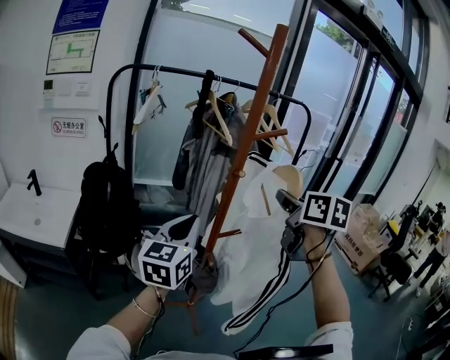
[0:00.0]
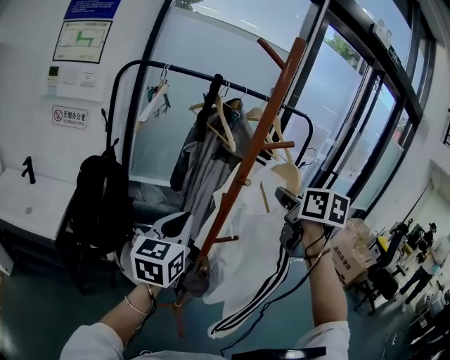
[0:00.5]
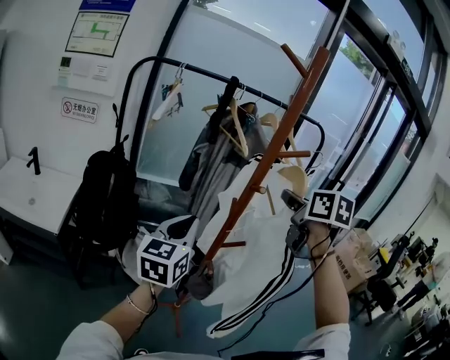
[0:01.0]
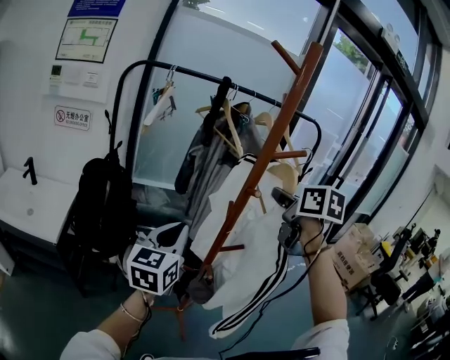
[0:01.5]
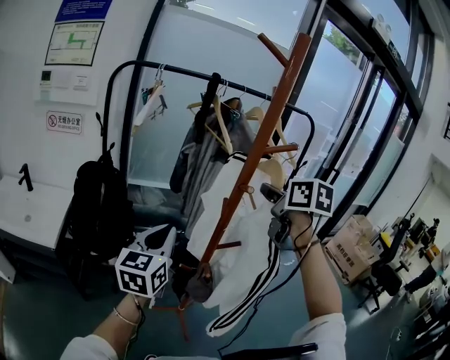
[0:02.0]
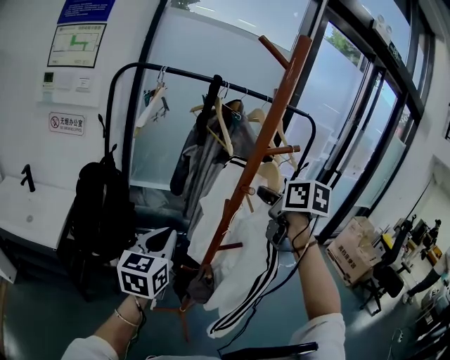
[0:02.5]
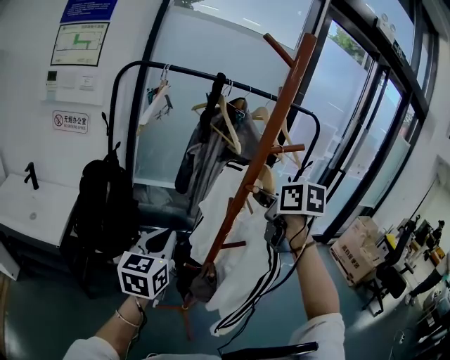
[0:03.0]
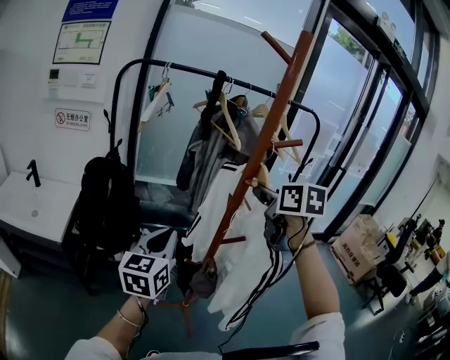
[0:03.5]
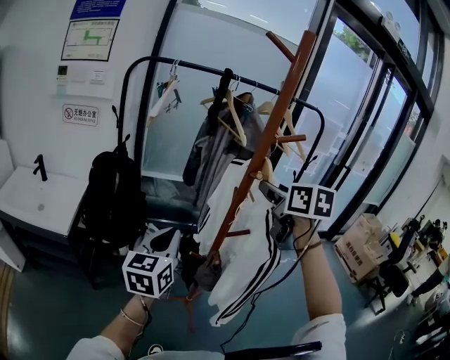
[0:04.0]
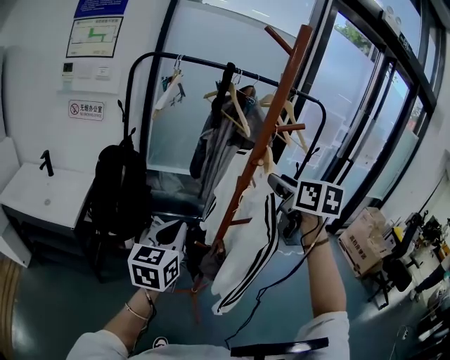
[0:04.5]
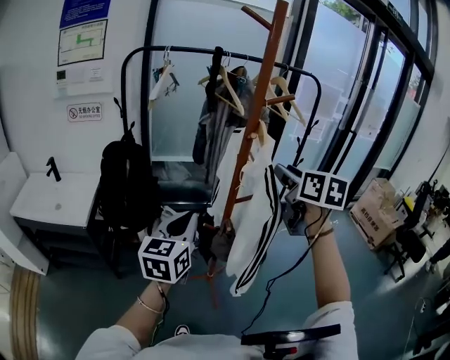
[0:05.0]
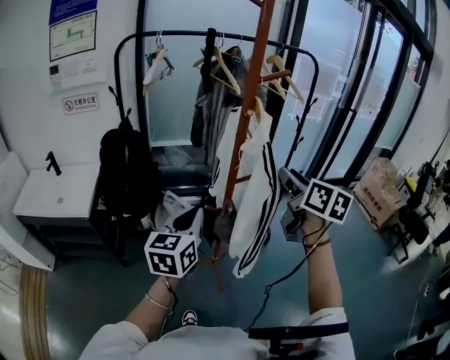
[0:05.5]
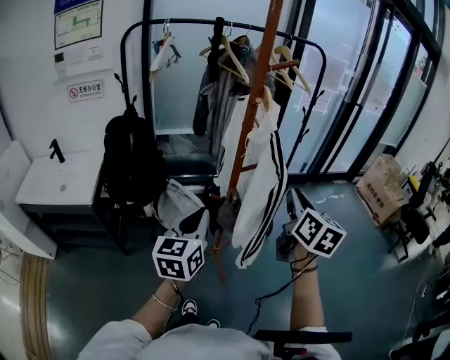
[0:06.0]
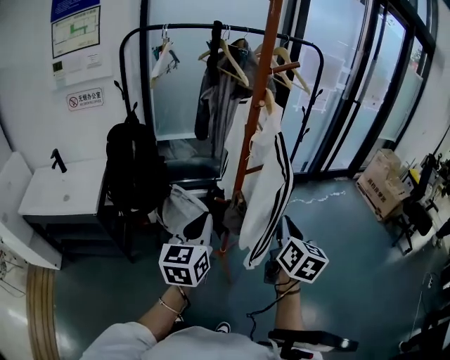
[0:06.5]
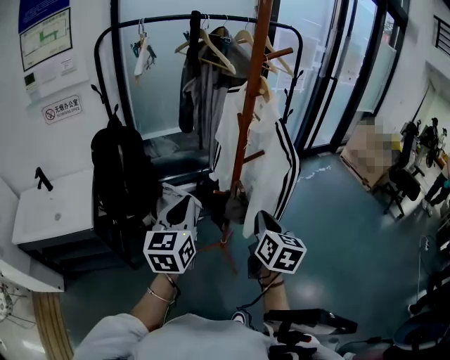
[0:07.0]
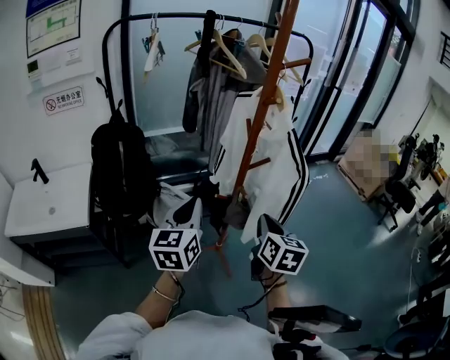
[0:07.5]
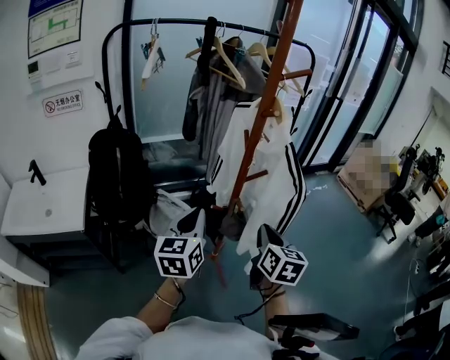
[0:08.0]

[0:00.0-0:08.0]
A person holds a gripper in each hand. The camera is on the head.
0:00.0 to 0:02.0: The left gripper is displaced to the left by some 5 cm, while the right gripper travels forward and to the left by approximately 10 cm.
0:02.0 to 0:04.0: The right gripper opens. The left gripper changes place by some 5 cm.
0:04.0 to 0:06.0: The right gripper shifts roughly 25 cm backward, downward and to the right, rotates some 20 degrees, and closes up; the left gripper shifts about 15 cm backward, to the right and downward.
0:06.0 to 0:08.0: The left gripper moves to the left and forward, roughly 10 cm. The right gripper shifts approximately 15 cm downward and to the left.

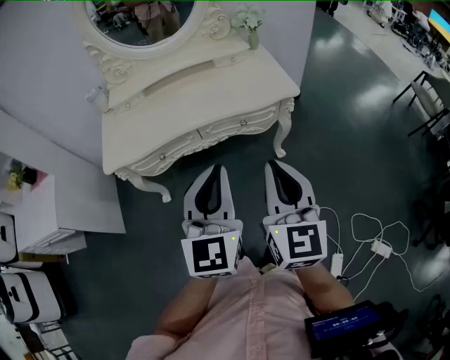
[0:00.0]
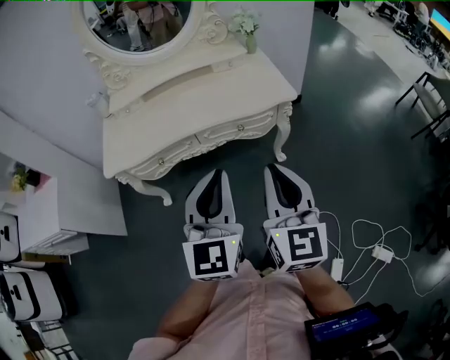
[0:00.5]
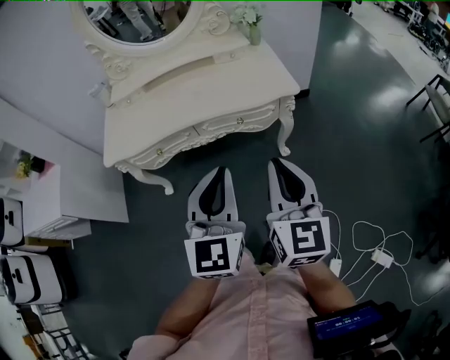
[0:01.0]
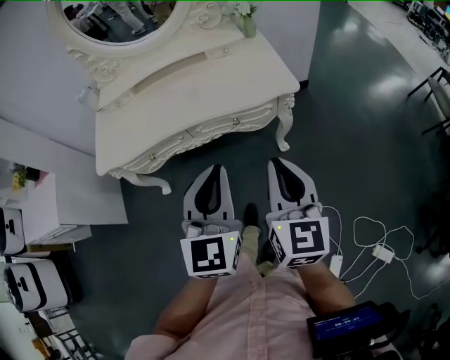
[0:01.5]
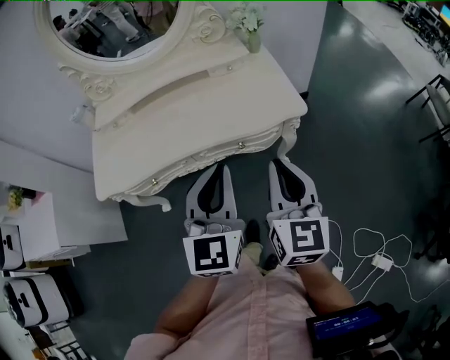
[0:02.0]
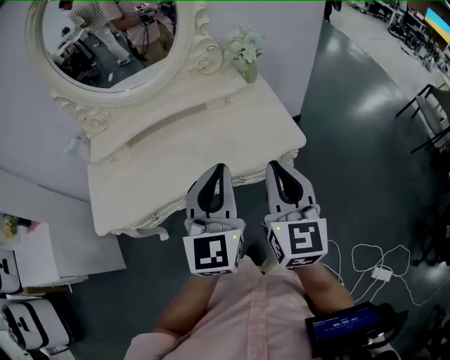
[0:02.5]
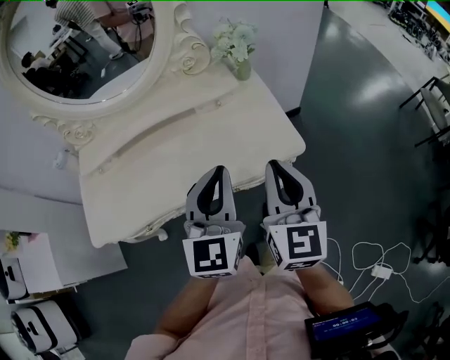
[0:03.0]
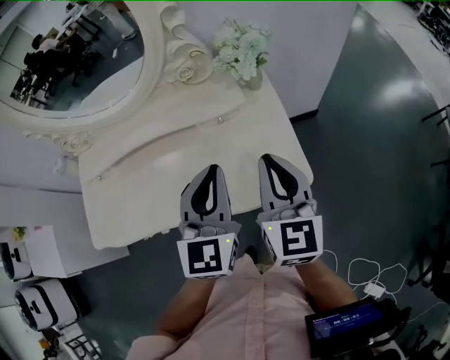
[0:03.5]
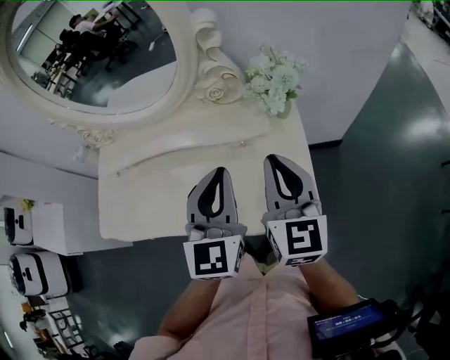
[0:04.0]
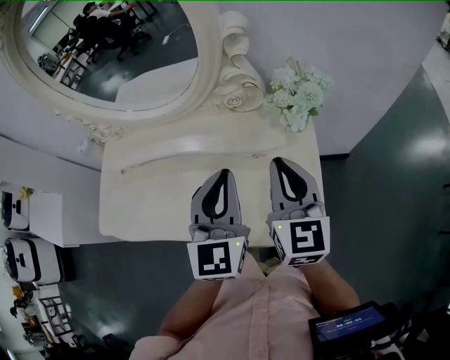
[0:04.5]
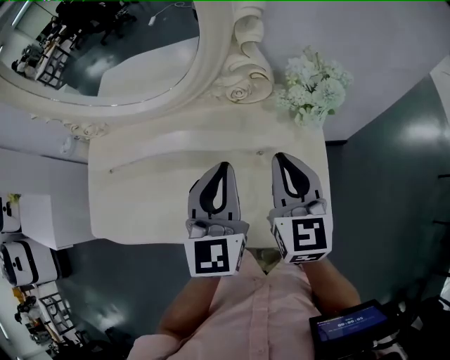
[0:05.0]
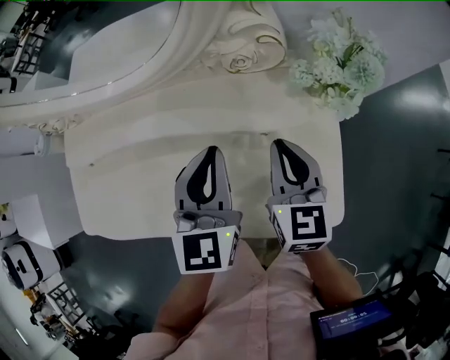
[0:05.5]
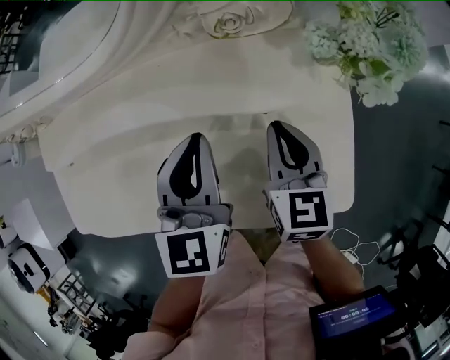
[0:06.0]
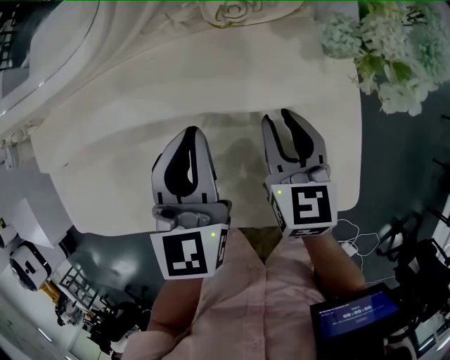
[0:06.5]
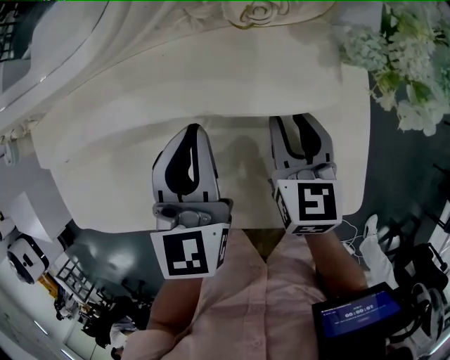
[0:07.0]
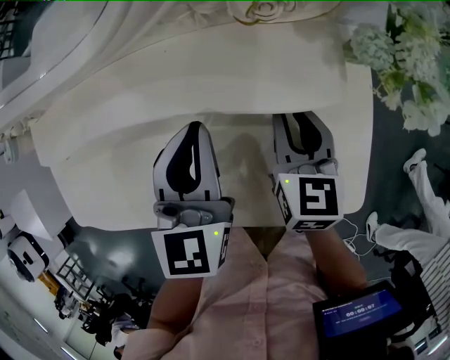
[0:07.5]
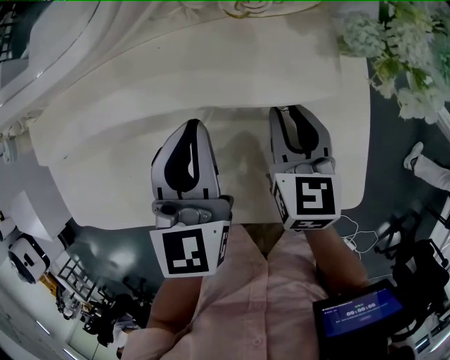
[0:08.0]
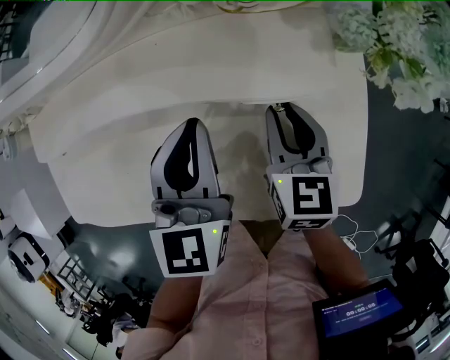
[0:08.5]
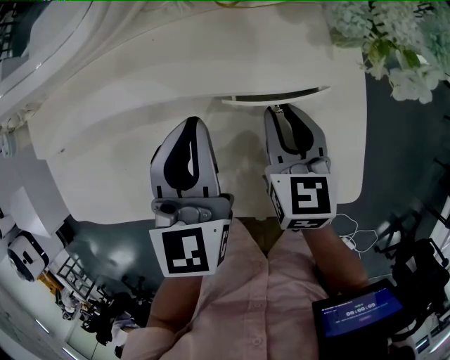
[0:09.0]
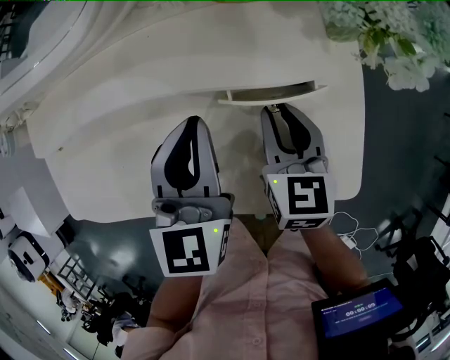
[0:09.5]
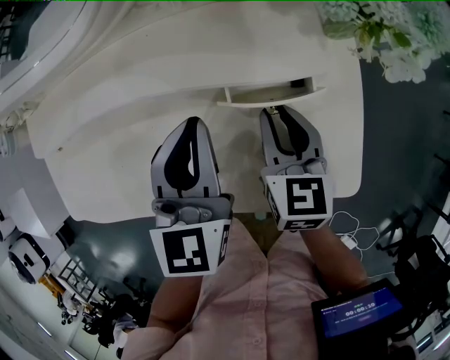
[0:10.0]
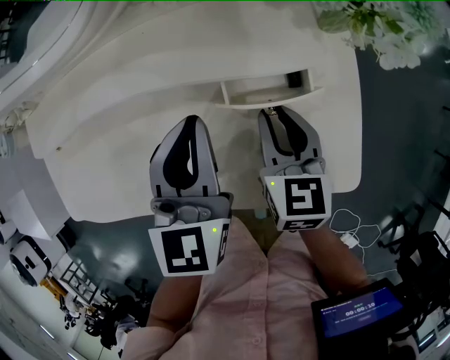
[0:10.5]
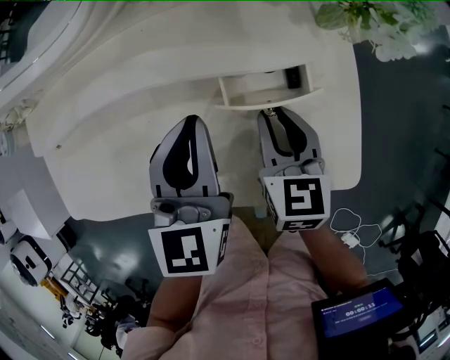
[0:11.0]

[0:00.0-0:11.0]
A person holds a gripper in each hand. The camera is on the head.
0:00.0 to 0:02.0: Both grippers travel together forward, some 15 cm.
0:02.0 to 0:03.5: Both grippers travel together forward, about 30 cm.
0:03.5 to 0:05.5: The right gripper goes approximately 25 cm forward, downward and to the left, while the left gripper shifts approximately 20 cm forward, to the left and downward.
0:05.5 to 0:07.5: Both grippers travel together downward, some 10 cm.
0:07.5 to 0:09.0: The grippers move only a little.
0:09.0 to 0:11.0: The grippers move only a little.

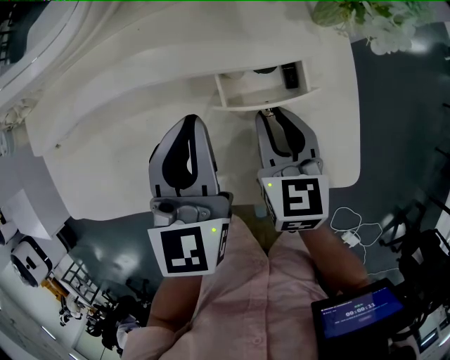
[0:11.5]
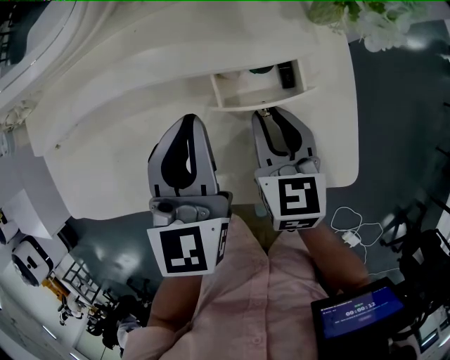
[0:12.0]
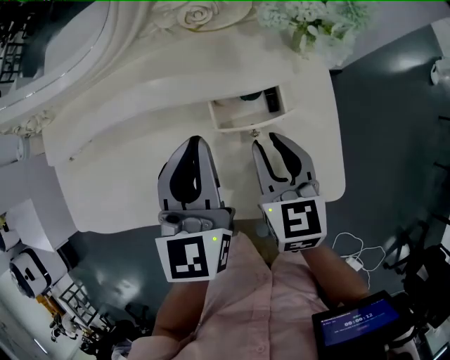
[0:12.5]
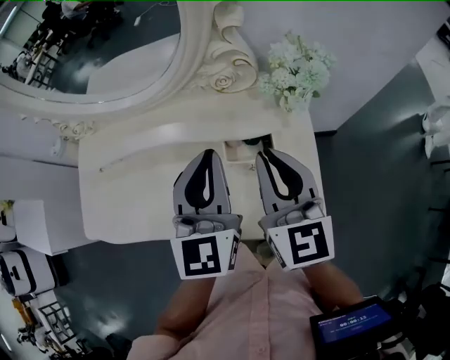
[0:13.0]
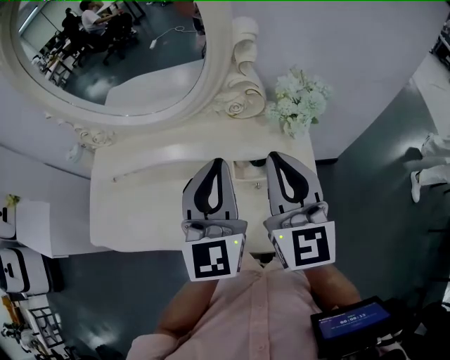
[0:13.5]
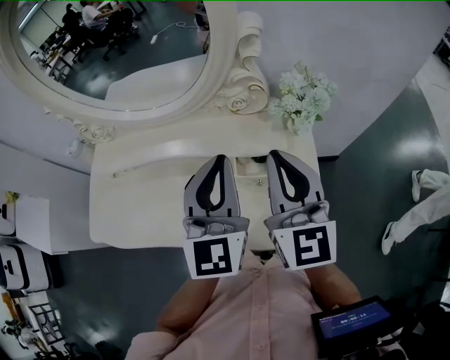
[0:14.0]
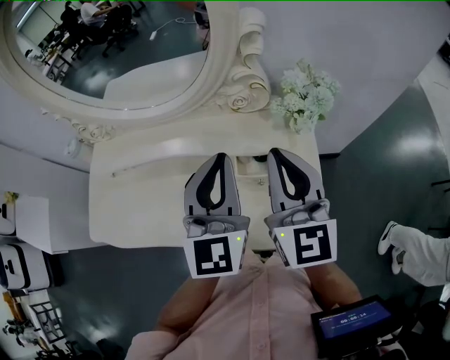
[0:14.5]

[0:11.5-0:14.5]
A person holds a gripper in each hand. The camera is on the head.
0:11.5 to 0:13.0: The left gripper moves upward, about 10 cm; the right gripper heads upward, covering approximately 15 cm, and swivels about 30 degrees.
0:13.0 to 0:14.5: The right gripper goes about 5 cm upward.

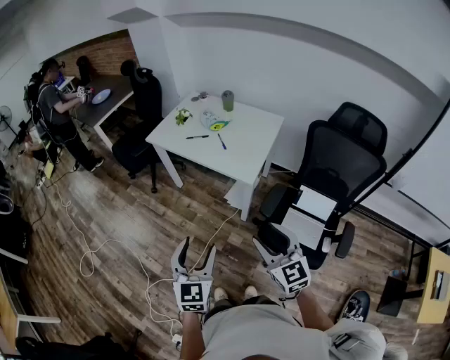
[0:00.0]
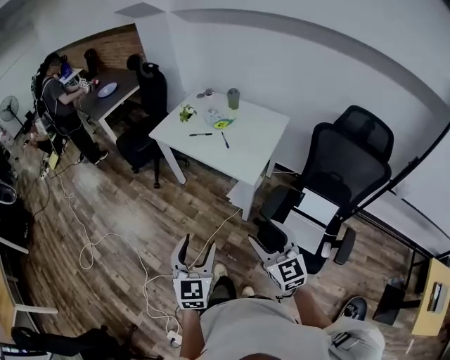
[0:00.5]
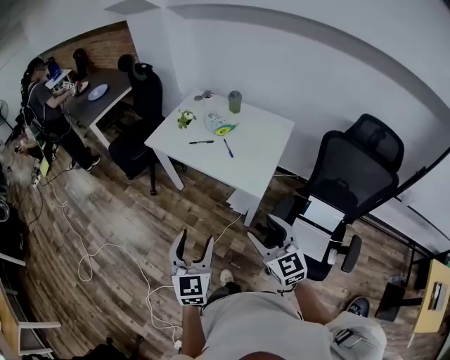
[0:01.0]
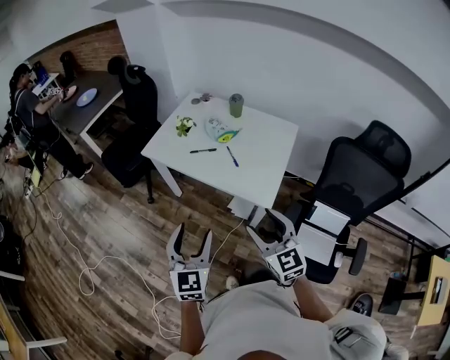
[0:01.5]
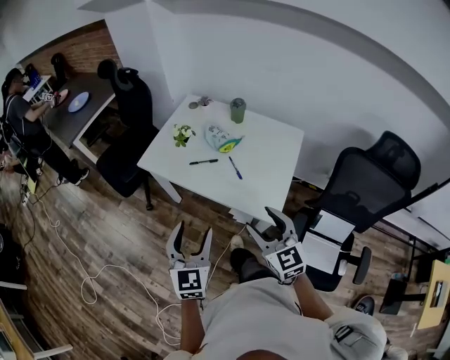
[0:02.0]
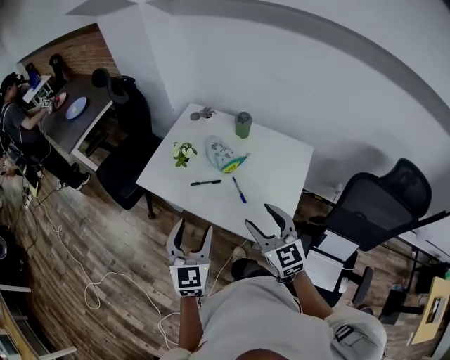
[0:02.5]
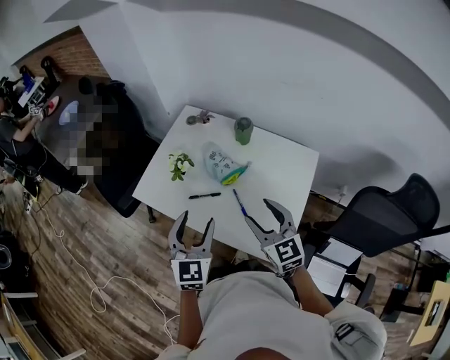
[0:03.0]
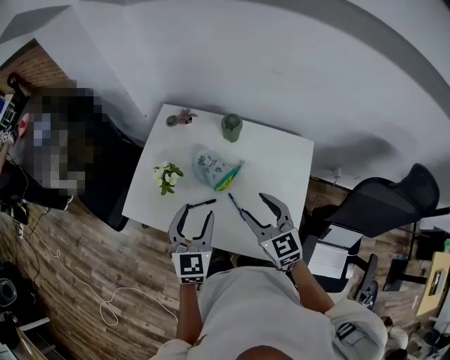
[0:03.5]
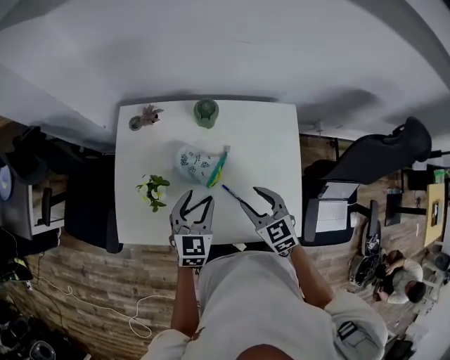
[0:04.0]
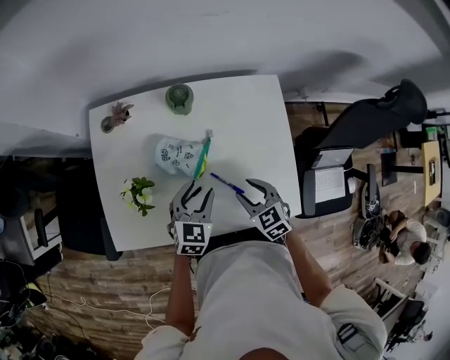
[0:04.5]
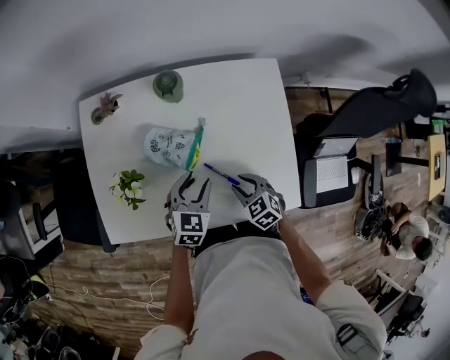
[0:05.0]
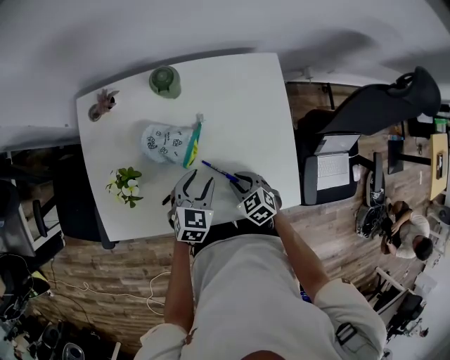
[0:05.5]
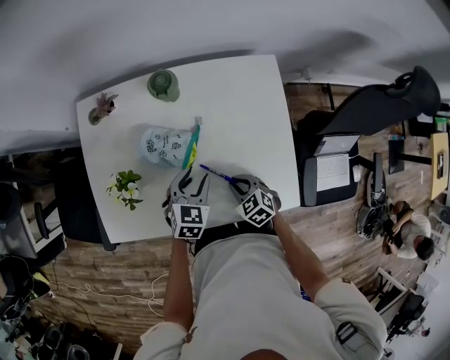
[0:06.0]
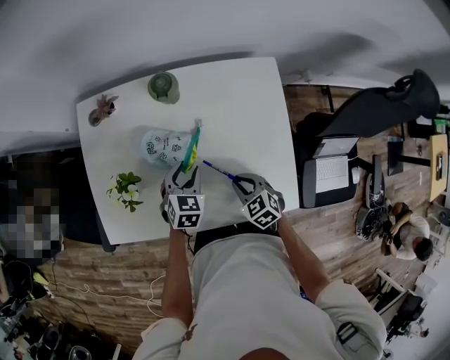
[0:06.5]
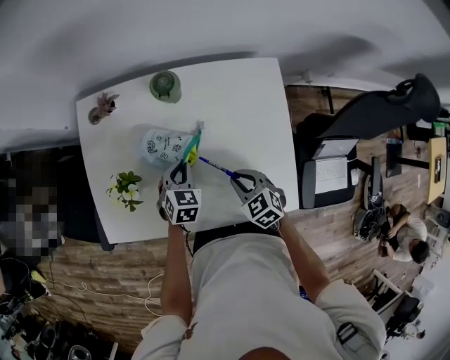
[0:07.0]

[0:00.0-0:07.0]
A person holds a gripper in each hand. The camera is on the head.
0:00.0 to 0:02.0: The grippers both shift forward by about 35 cm.
0:02.0 to 0:03.5: The grippers both shift forward by approximately 30 cm.
0:03.5 to 0:05.0: The grippers both shift downward by approximately 20 cm. The right gripper tips its fingers downward by about 30 degrees, and closes its fingers. Meanwhile the left gripper rotates some 40 degrees.
0:05.0 to 0:07.0: The left gripper shifts approximately 10 cm forward and downward, and closes up.
